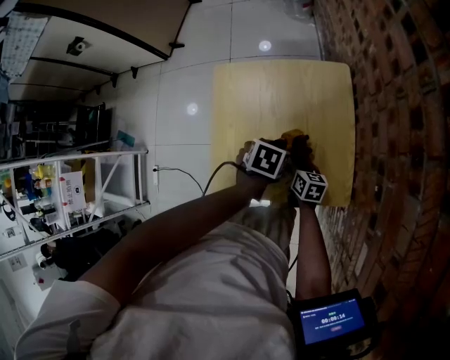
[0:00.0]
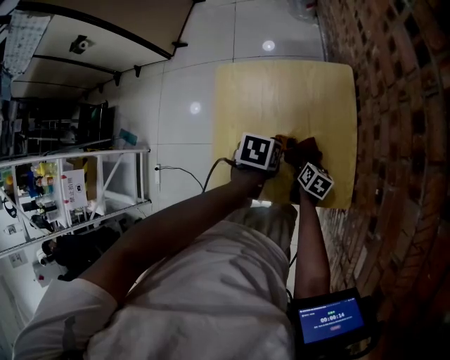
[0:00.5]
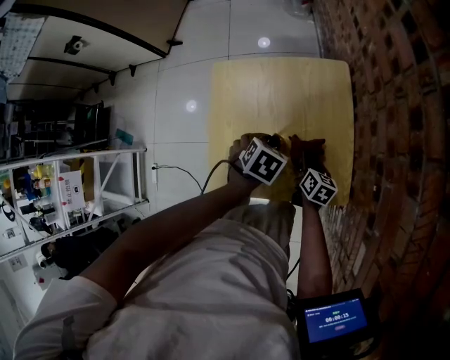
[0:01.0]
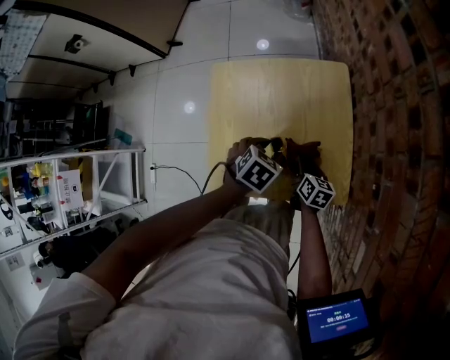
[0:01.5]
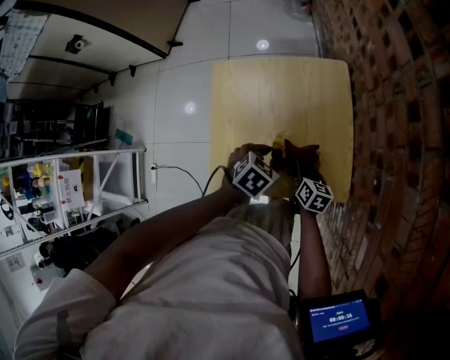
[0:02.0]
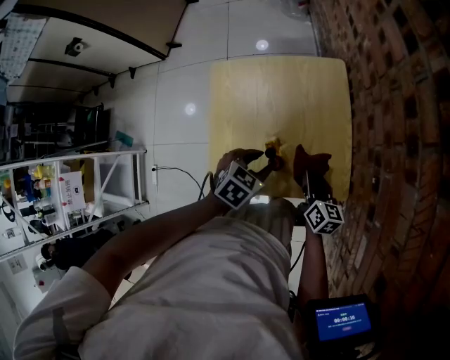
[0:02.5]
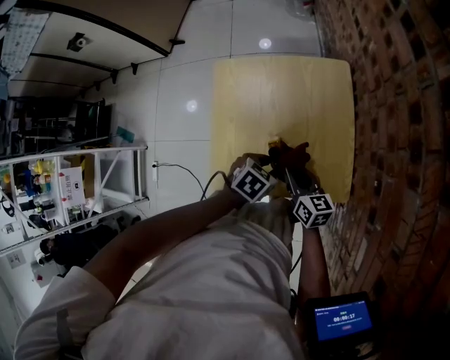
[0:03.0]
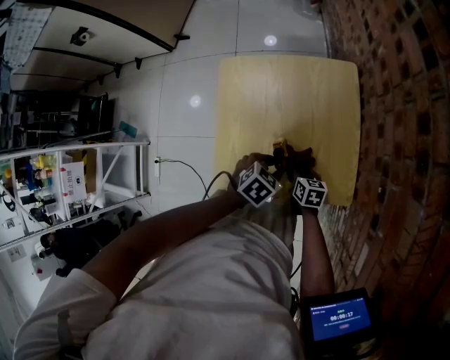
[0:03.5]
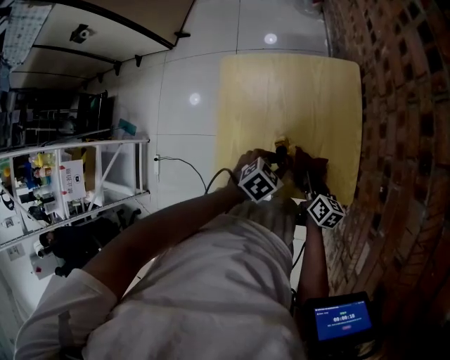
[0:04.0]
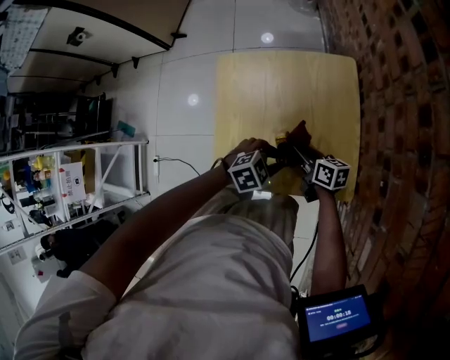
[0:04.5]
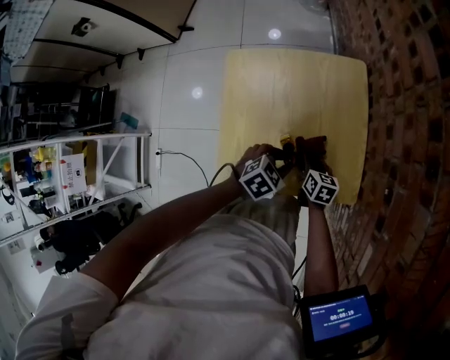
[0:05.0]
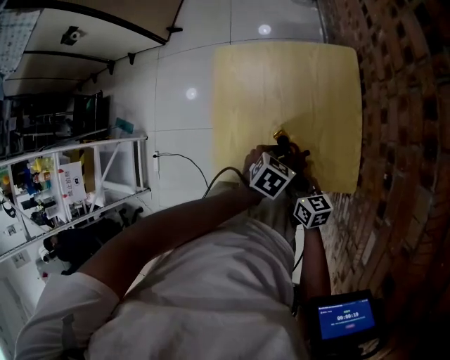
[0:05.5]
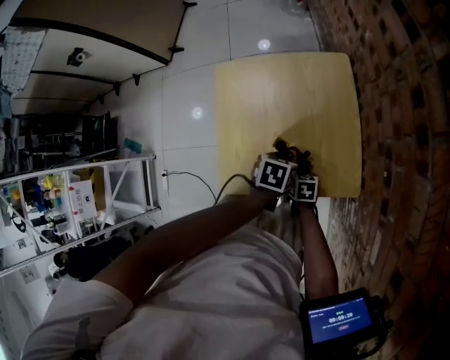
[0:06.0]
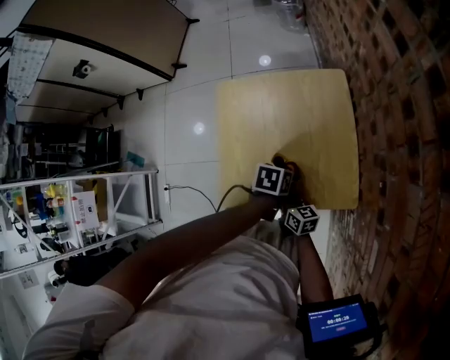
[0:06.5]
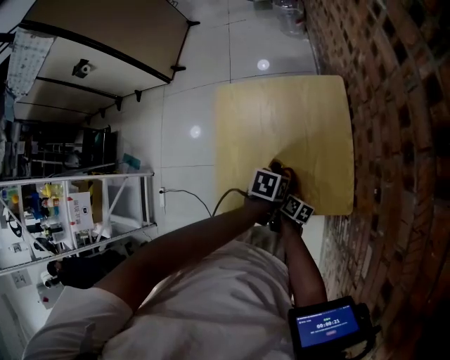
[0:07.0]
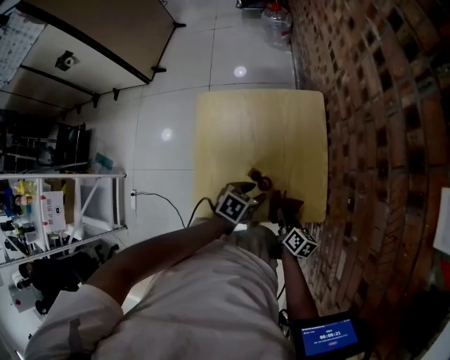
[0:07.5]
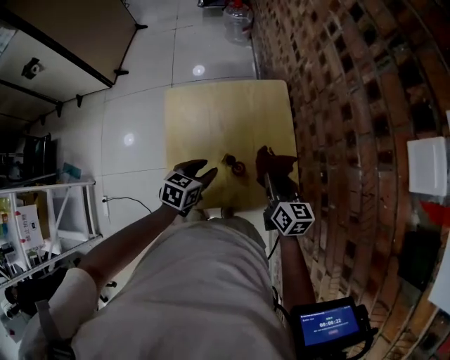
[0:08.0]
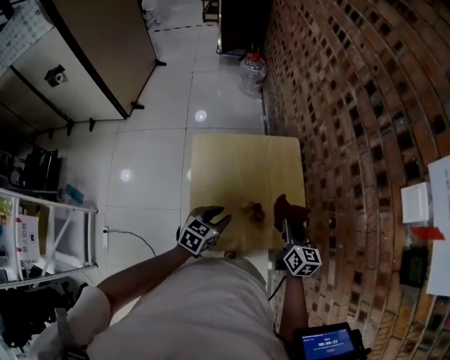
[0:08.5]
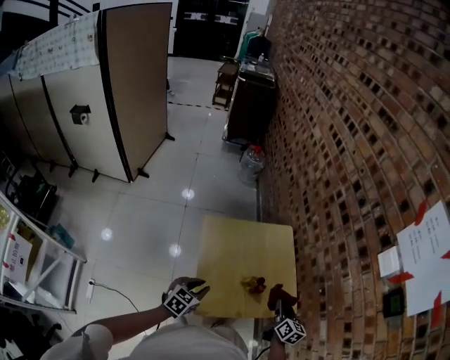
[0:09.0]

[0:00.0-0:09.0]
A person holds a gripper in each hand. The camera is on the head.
0:00.0 to 0:02.0: The left gripper turns by approximately 20 degrees.
0:02.0 to 0:04.5: The right gripper swings up and down, about 15 cm each way, with 2 reversals, and rotates some 30 degrees, while the left gripper changes its angle by roughly 30 degrees, and closes its fingers.
0:04.5 to 0:07.0: The right gripper moves up and down over about 10 cm, changing direction 4 times, and swivels about 30 degrees; the left gripper twists roughly 60 degrees counterclockwise, seen from behind.
0:07.0 to 0:09.0: The left gripper travels to the left and upward by about 30 cm, rotates some 40 degrees, and opens and closes again. The right gripper is displaced upward by some 25 cm, and swivels about 50 degrees.

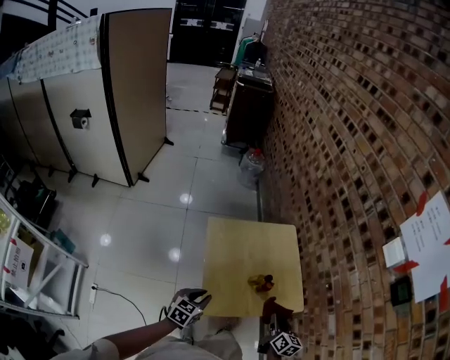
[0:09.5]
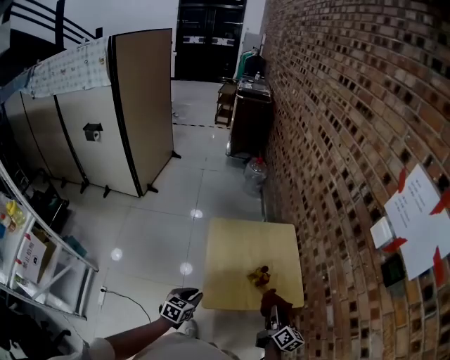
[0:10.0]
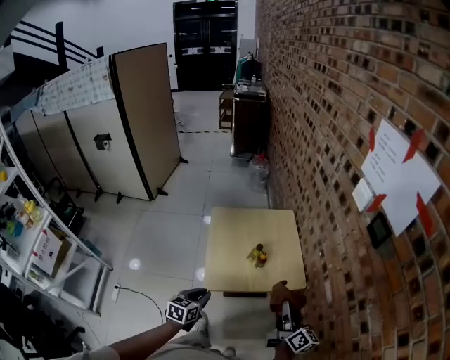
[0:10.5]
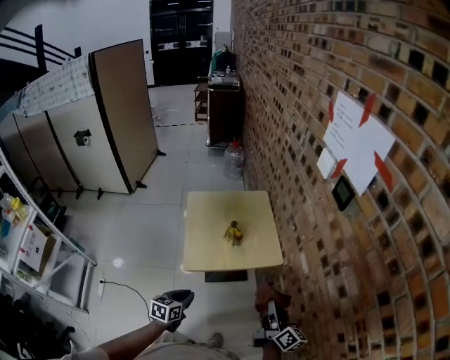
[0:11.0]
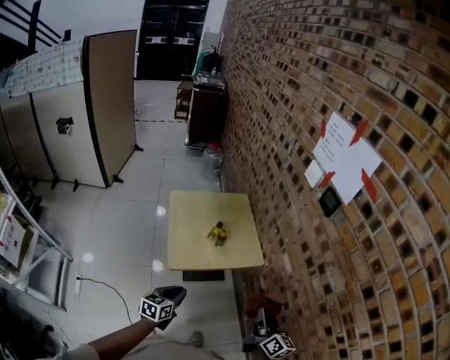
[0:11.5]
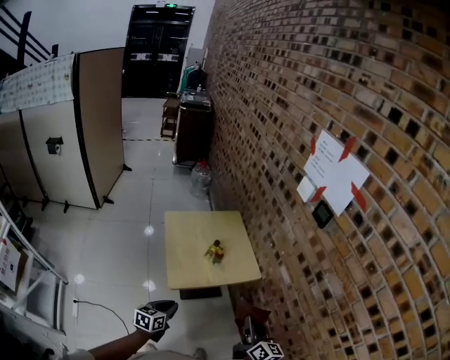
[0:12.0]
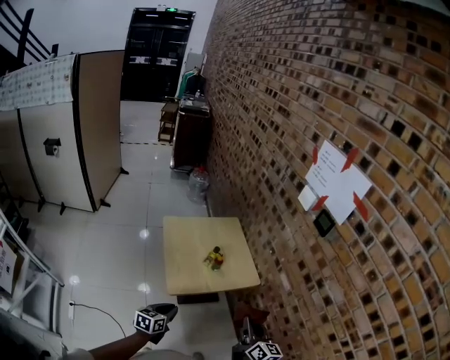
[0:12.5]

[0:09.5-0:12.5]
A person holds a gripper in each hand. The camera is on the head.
0:09.5 to 0:11.0: The left gripper travels backward and to the right by approximately 30 cm. The right gripper is displaced backward, to the right and upward by some 30 cm, and rotates some 30 degrees.
0:11.0 to 0:12.5: The left gripper shifts approximately 5 cm to the left. The right gripper is displaced to the left and upward by some 10 cm, and changes its angle by about 20 degrees.

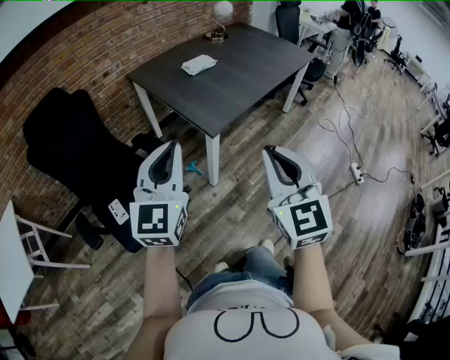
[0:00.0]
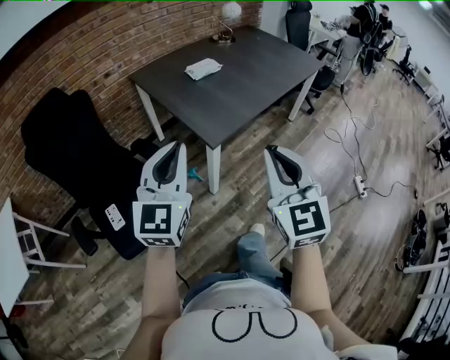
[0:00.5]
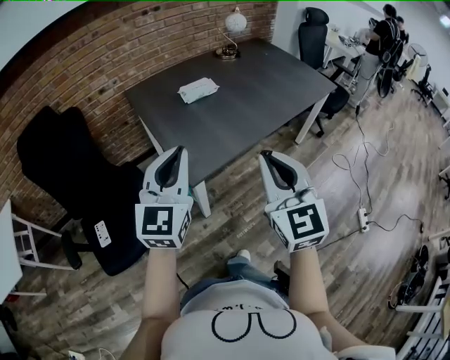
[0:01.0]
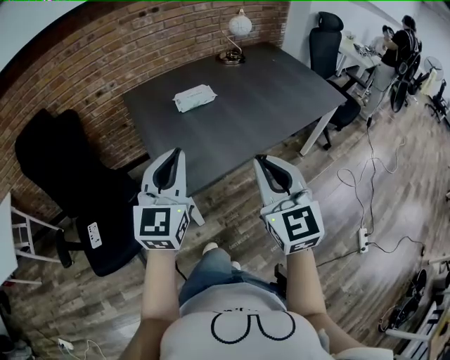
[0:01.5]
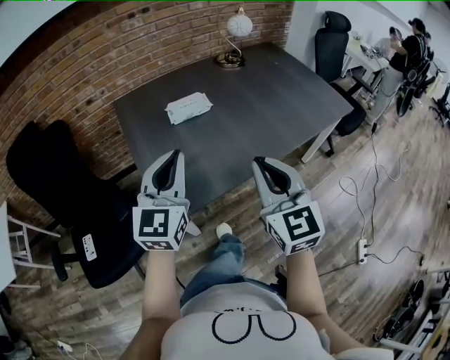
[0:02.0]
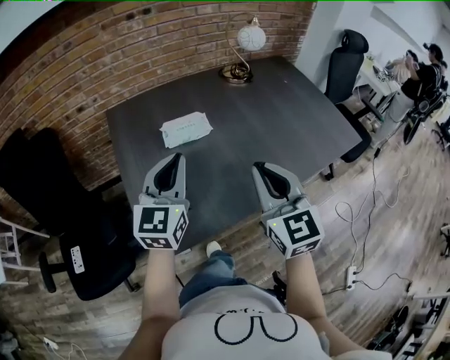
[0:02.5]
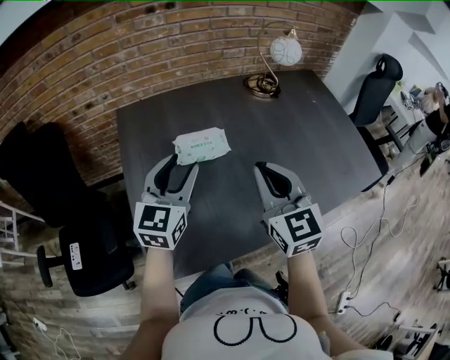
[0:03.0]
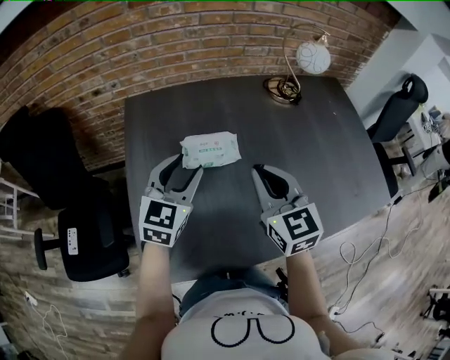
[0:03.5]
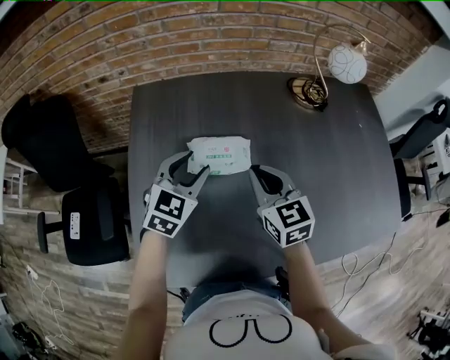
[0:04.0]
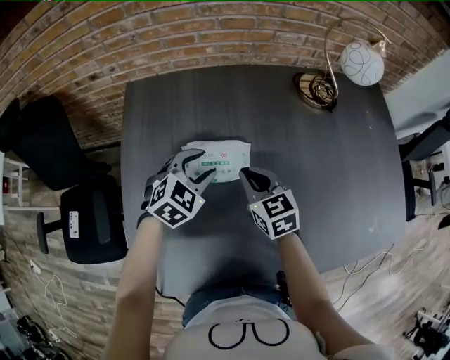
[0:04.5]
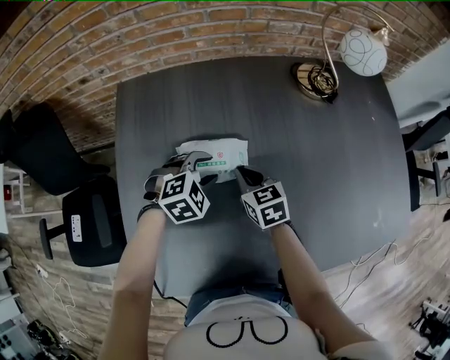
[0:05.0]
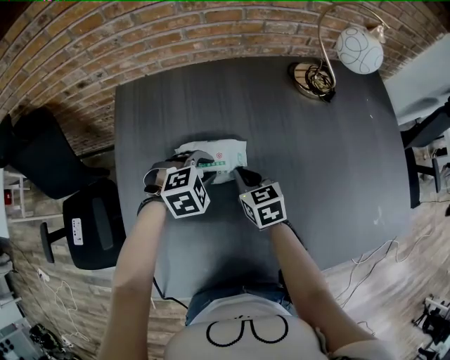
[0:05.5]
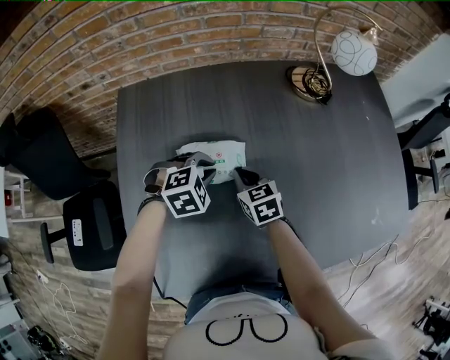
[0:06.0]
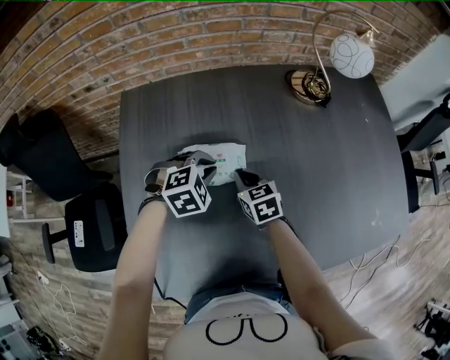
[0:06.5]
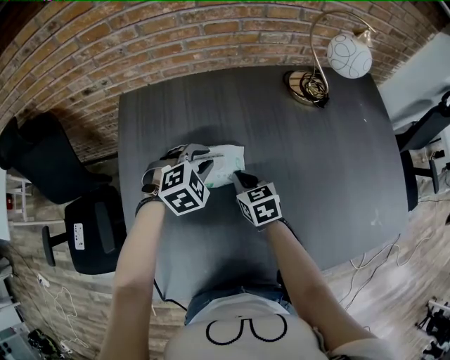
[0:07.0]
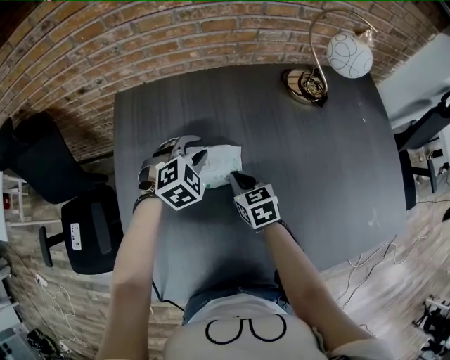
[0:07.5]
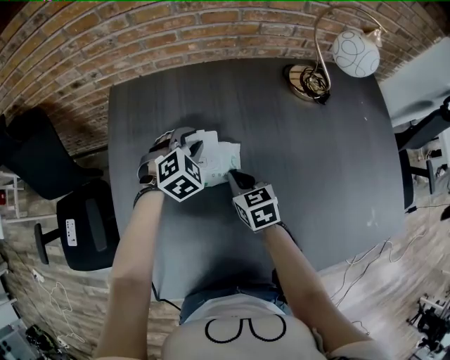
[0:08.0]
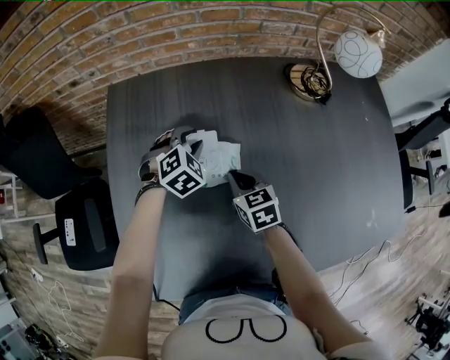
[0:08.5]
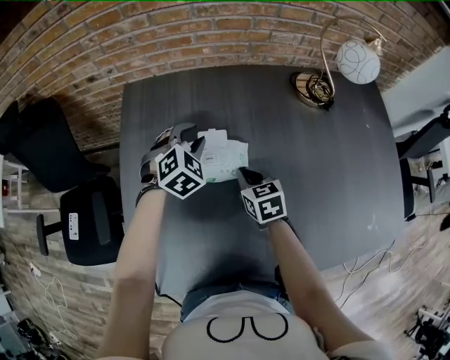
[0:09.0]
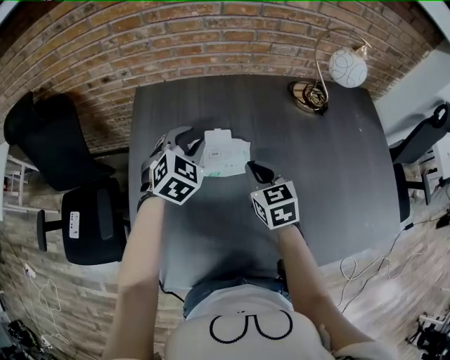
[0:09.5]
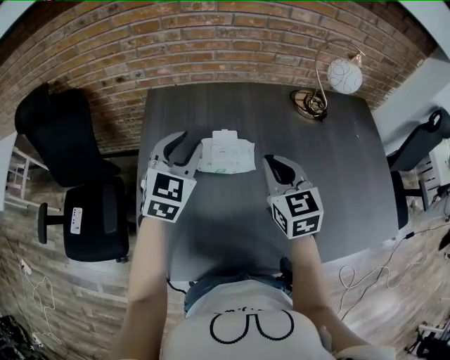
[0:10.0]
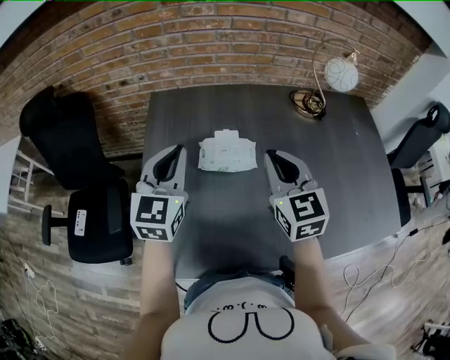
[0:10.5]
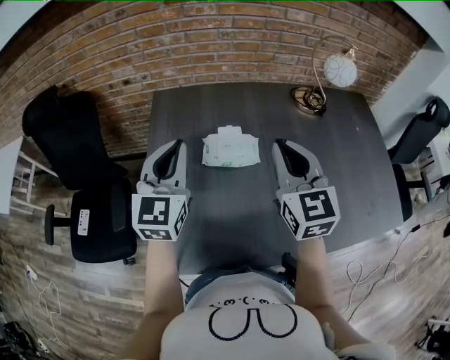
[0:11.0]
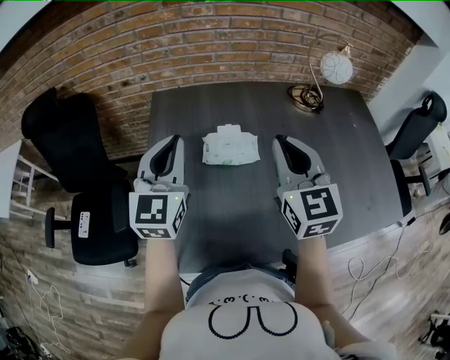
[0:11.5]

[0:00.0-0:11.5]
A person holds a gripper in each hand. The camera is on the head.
0:00.0 to 0:02.0: The two grippers travel together, forward and to the right, approximately 50 cm.
0:02.0 to 0:04.0: The two grippers travel together, forward, some 40 cm. The right gripper swivels roughly 30 degrees. The left gripper goes roughly 15 cm downward, tilts its fingers roughly 30 degrees downward, and opens its fingers.
0:04.0 to 0:06.0: The right gripper is displaced downward by about 15 cm. Meanwhile the left gripper is displaced downward and to the right by approximately 15 cm, tilts its fingers some 30 degrees downward, and closes.
0:06.0 to 0:07.5: The left gripper is displaced forward by roughly 5 cm.
0:07.5 to 0:09.5: The right gripper moves upward, about 10 cm, while the left gripper shifts some 10 cm upward and to the left, and rotates some 20 degrees.
0:09.5 to 0:11.5: The left gripper goes some 25 cm upward, backward and to the left, tilts its fingers some 30 degrees upward, and closes its fingers, while the right gripper travels upward and backward by roughly 25 cm, and turns by some 30 degrees.

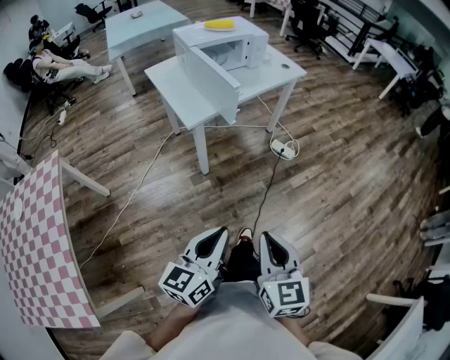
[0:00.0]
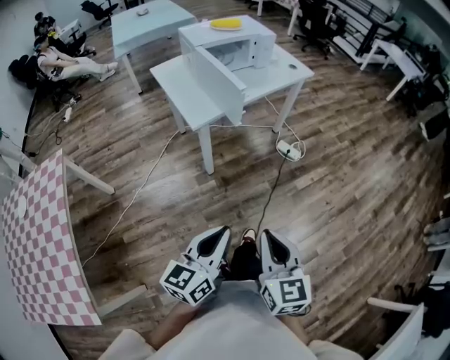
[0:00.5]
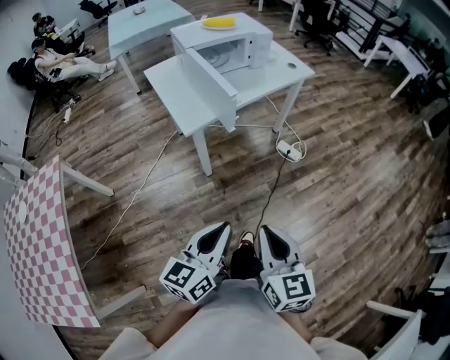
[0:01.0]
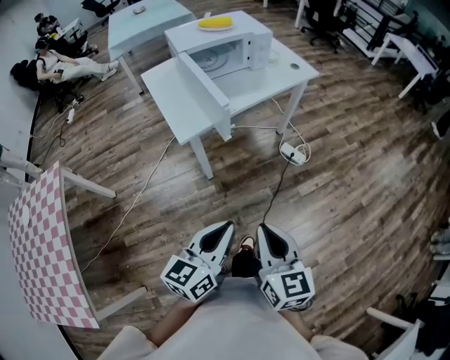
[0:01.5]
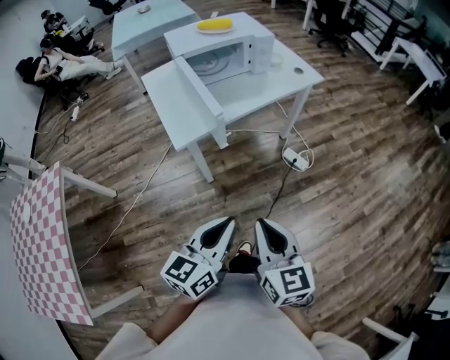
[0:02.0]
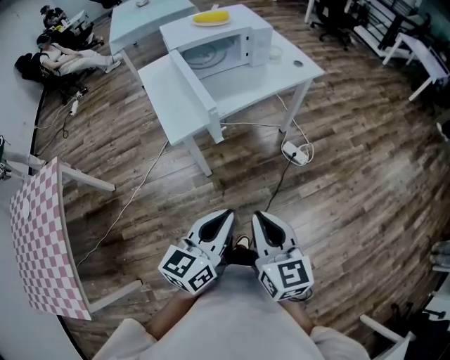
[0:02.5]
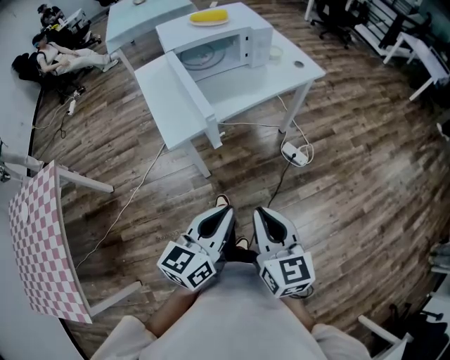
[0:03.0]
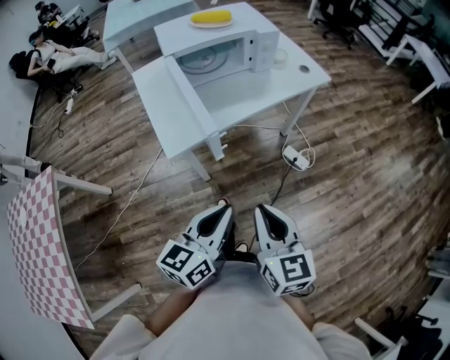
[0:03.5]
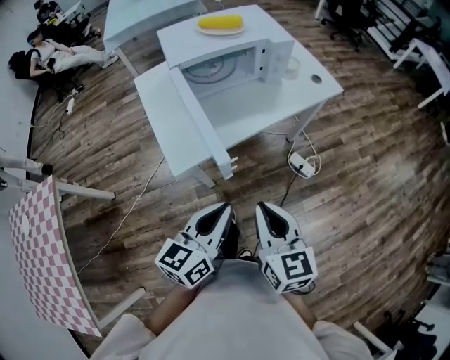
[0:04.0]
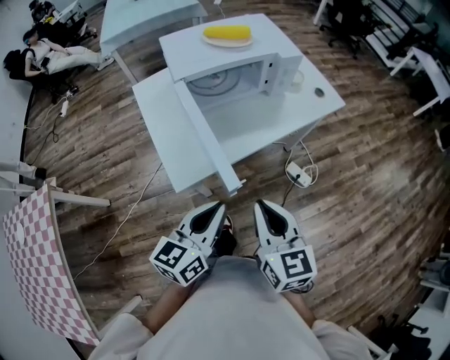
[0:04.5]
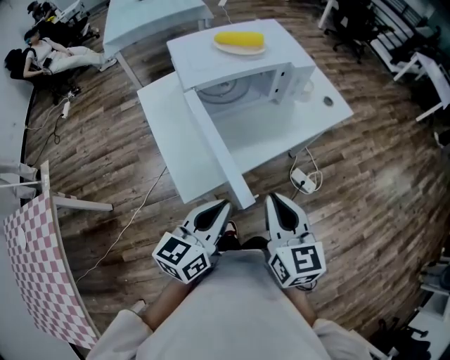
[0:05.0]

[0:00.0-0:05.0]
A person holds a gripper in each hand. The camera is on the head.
0:00.0 to 0:02.5: The right gripper shifts about 20 cm forward; the left gripper heads forward and to the right, covering some 25 cm.
0:02.5 to 0:05.0: The right gripper heads forward, covering approximately 30 cm. The left gripper goes about 30 cm forward and to the left.
